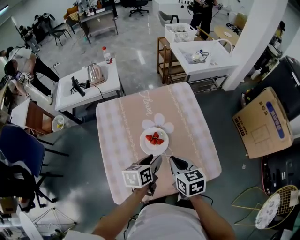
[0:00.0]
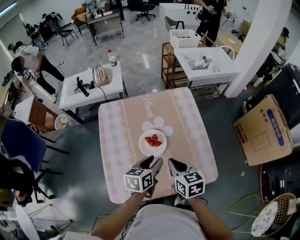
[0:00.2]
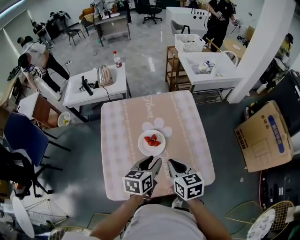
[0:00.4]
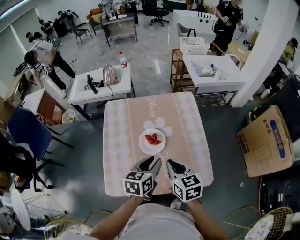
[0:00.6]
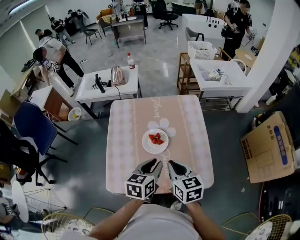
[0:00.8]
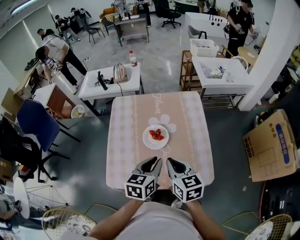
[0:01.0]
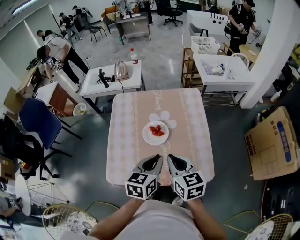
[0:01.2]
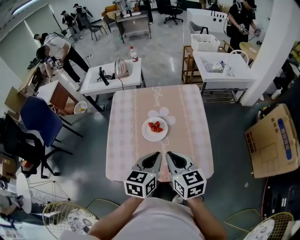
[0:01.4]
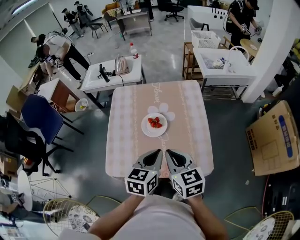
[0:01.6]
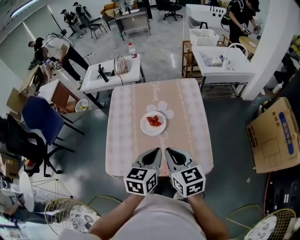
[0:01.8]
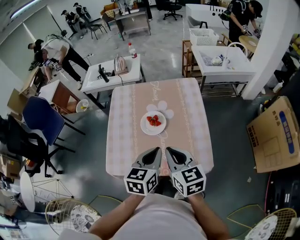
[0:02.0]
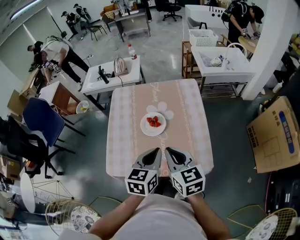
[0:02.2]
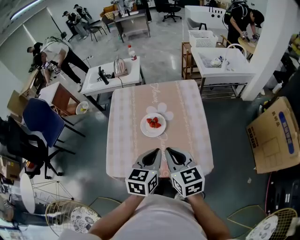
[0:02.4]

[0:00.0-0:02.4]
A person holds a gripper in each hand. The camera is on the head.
0:00.0 to 0:01.2: The right gripper goes about 10 cm upward.

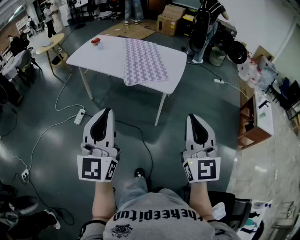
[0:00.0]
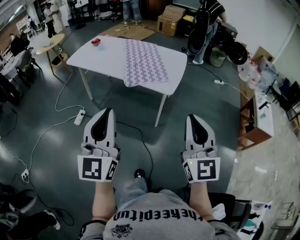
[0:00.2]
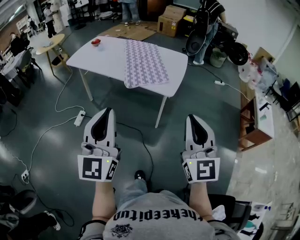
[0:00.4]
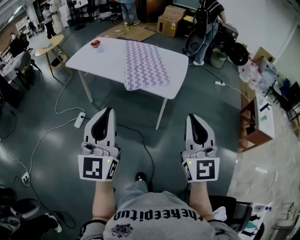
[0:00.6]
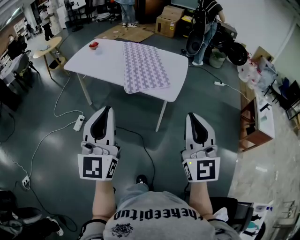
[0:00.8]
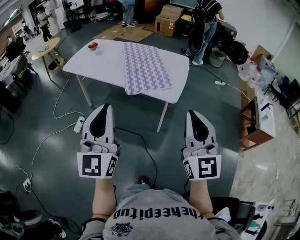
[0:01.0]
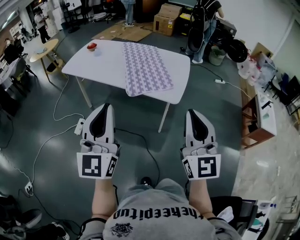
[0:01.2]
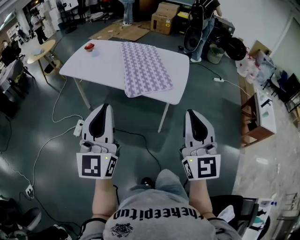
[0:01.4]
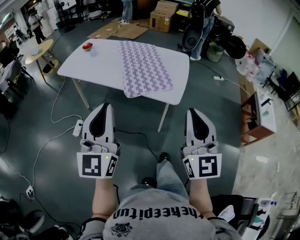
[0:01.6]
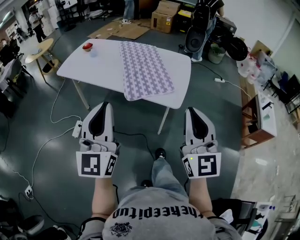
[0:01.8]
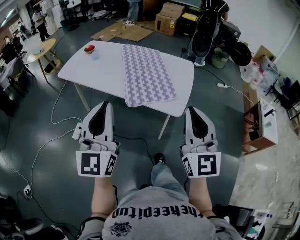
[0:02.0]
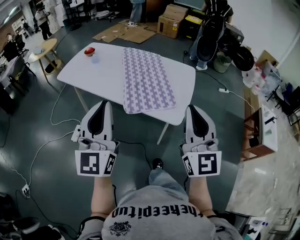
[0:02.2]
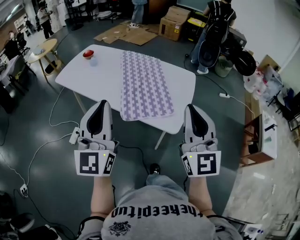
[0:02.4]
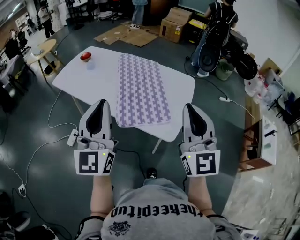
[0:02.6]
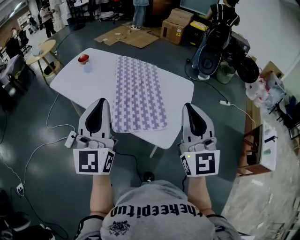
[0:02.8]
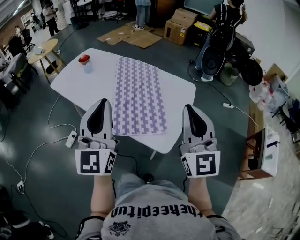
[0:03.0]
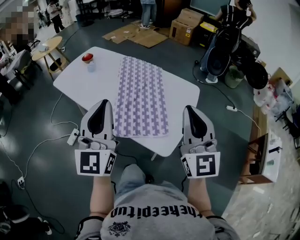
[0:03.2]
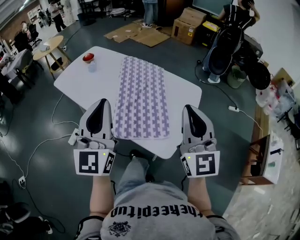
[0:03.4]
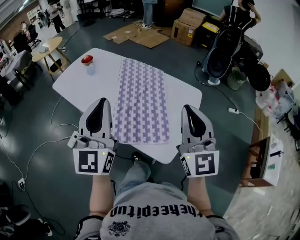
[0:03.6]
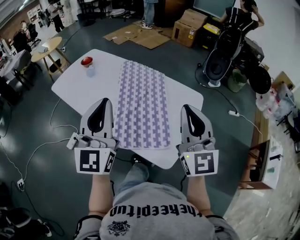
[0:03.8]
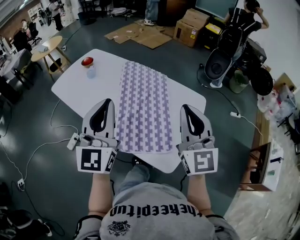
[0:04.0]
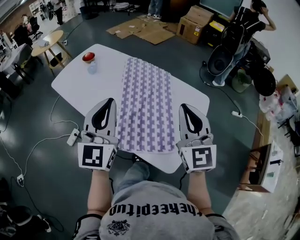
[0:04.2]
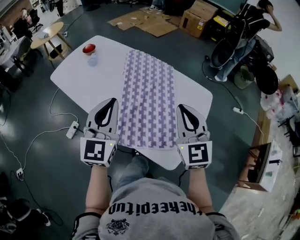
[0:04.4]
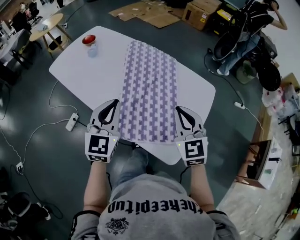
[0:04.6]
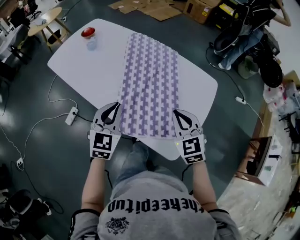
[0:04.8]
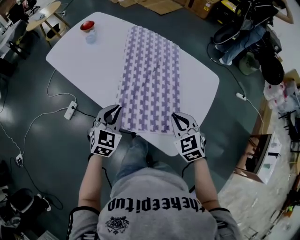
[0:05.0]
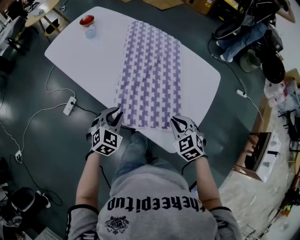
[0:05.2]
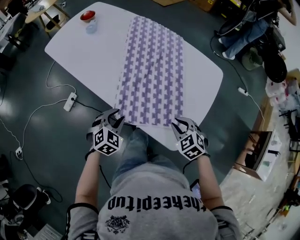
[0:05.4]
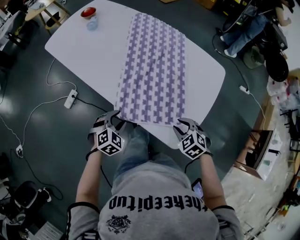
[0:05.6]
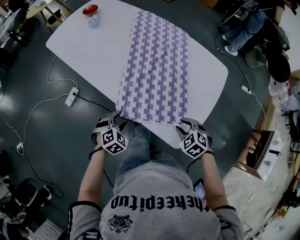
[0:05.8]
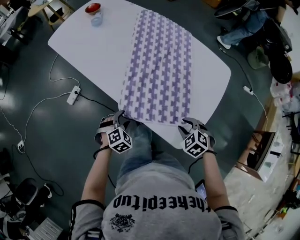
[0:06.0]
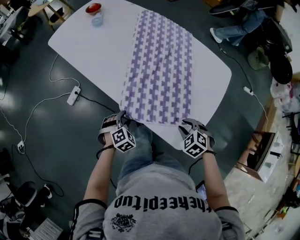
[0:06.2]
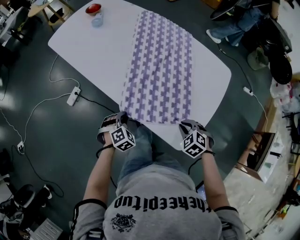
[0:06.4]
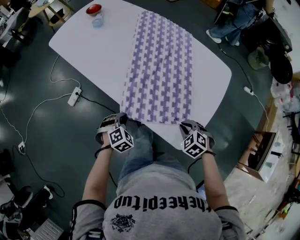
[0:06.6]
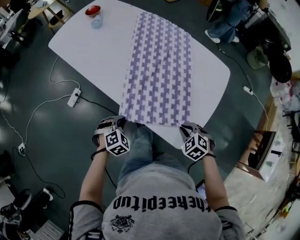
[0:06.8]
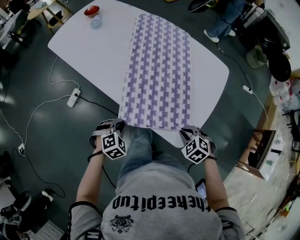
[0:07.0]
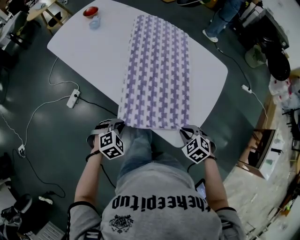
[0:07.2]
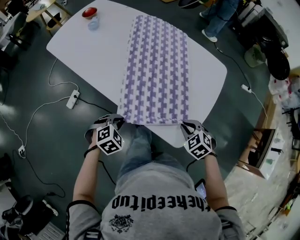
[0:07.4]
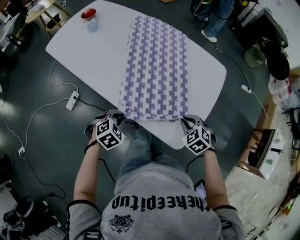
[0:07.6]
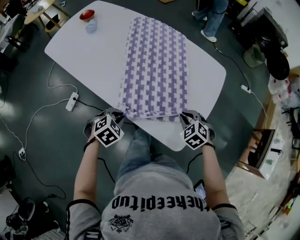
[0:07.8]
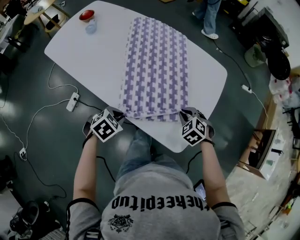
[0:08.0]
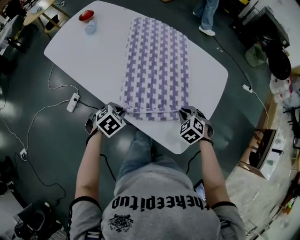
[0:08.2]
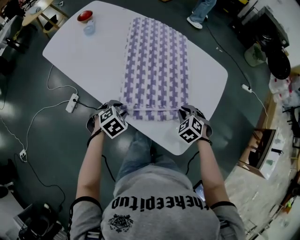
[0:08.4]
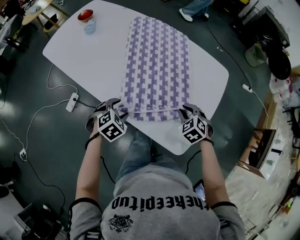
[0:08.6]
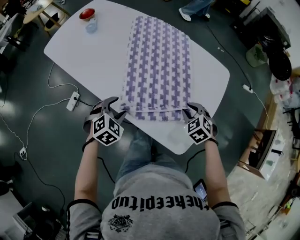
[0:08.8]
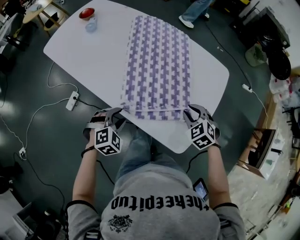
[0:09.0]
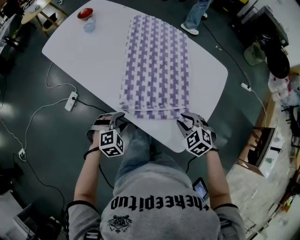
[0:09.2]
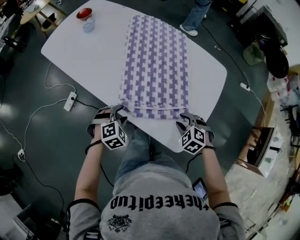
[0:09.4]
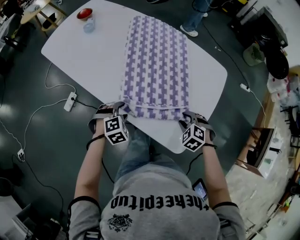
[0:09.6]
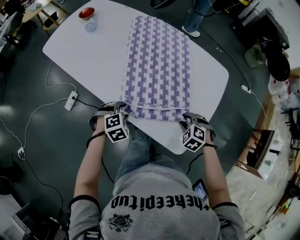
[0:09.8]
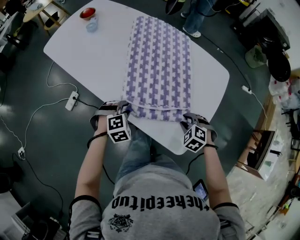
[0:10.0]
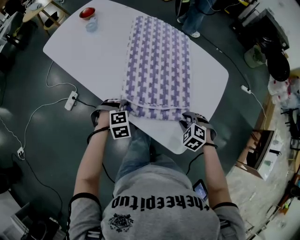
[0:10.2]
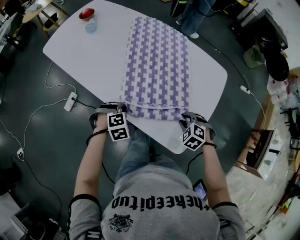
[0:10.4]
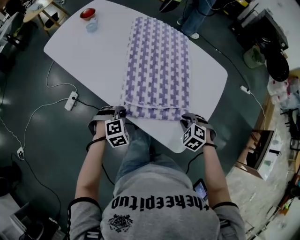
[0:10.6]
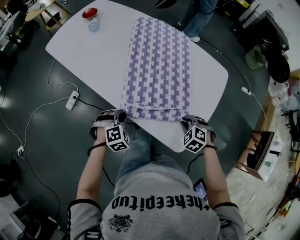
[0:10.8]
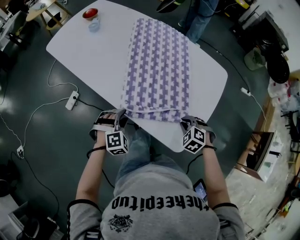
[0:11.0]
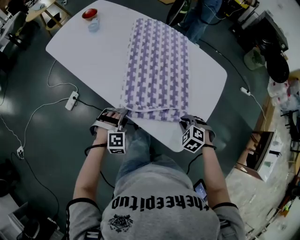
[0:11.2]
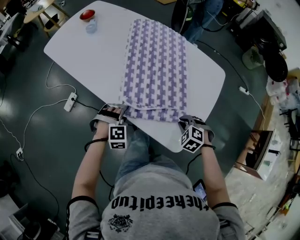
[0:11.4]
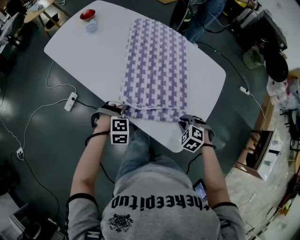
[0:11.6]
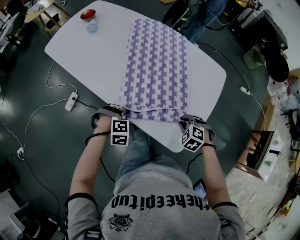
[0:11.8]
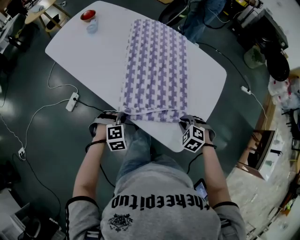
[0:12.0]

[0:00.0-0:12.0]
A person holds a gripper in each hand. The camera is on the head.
0:00.0 to 0:01.6: The two grippers go approximately 20 cm forward and to the left.
0:01.6 to 0:03.0: Both grippers are carried forward, approximately 40 cm.
0:03.0 to 0:04.4: Both grippers move forward and downward, some 25 cm.
0:04.4 to 0:06.0: Both grippers move downward, about 35 cm. The right gripper tilts its fingers some 60 degrees downward, and opens up. The left gripper tilts its fingers some 60 degrees downward, and opens.
0:06.0 to 0:07.6: The right gripper shifts roughly 5 cm forward. Meanwhile the left gripper goes approximately 10 cm upward, and closes up.
0:07.6 to 0:09.0: The right gripper is displaced forward by roughly 5 cm, while the left gripper opens.
0:09.0 to 0:10.4: The right gripper moves downward, about 5 cm, while the left gripper closes its fingers.
0:10.4 to 0:12.0: The left gripper opens and closes again.

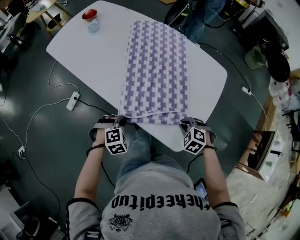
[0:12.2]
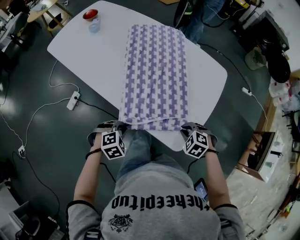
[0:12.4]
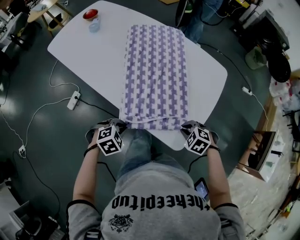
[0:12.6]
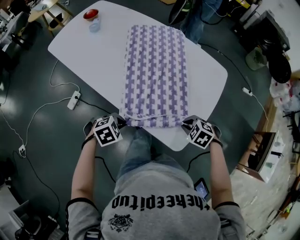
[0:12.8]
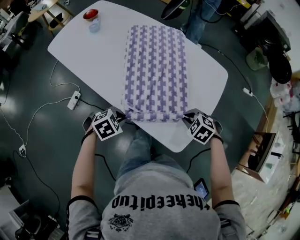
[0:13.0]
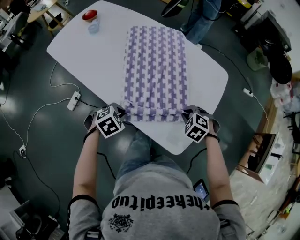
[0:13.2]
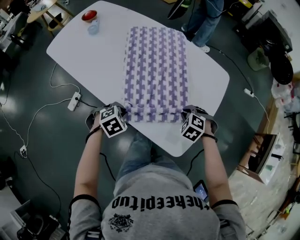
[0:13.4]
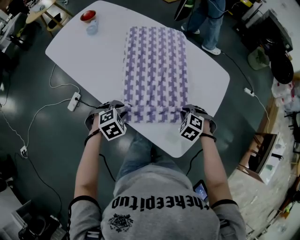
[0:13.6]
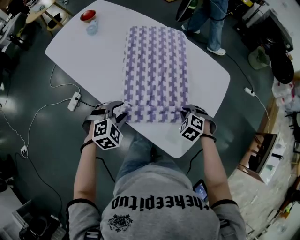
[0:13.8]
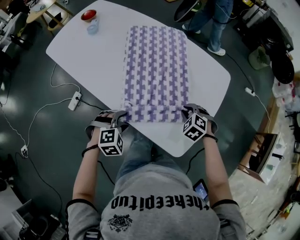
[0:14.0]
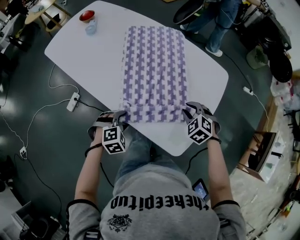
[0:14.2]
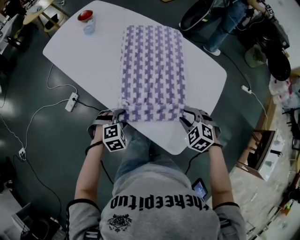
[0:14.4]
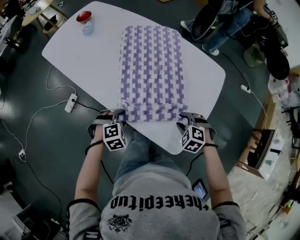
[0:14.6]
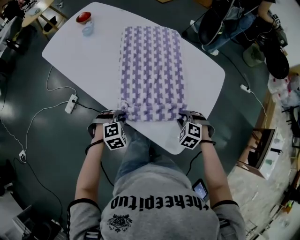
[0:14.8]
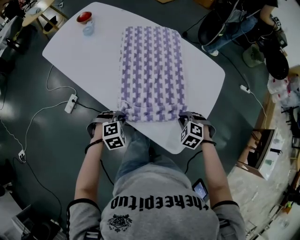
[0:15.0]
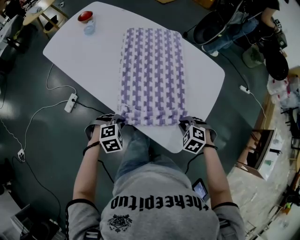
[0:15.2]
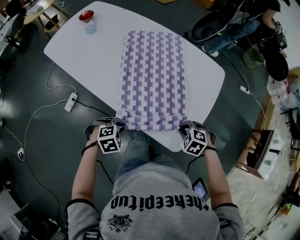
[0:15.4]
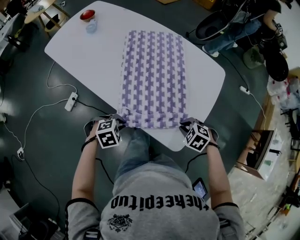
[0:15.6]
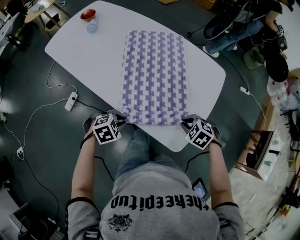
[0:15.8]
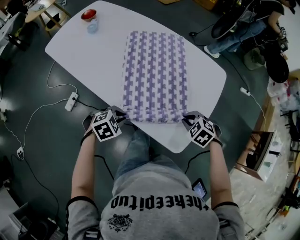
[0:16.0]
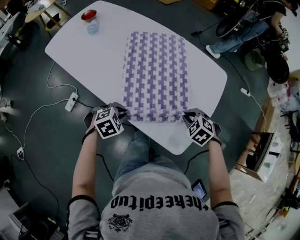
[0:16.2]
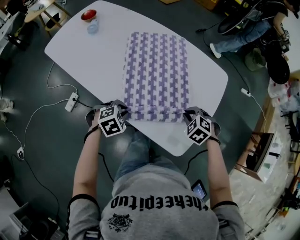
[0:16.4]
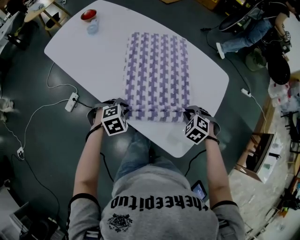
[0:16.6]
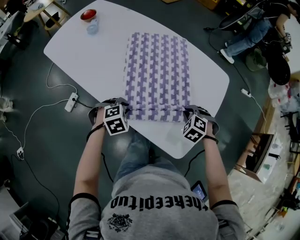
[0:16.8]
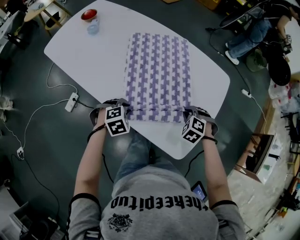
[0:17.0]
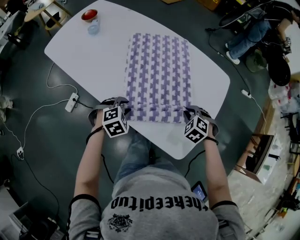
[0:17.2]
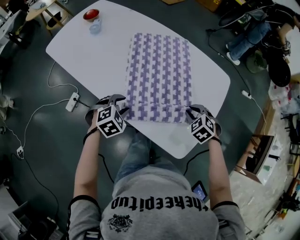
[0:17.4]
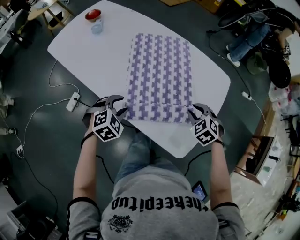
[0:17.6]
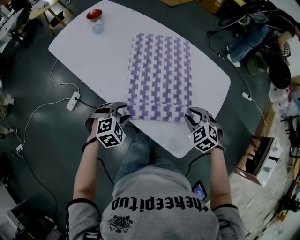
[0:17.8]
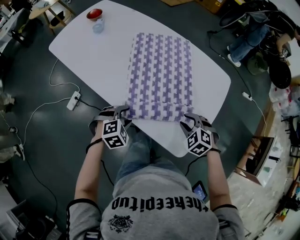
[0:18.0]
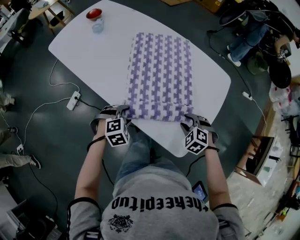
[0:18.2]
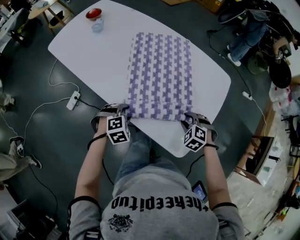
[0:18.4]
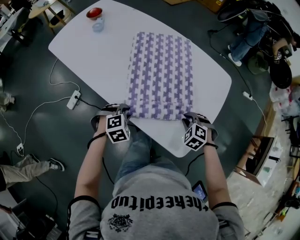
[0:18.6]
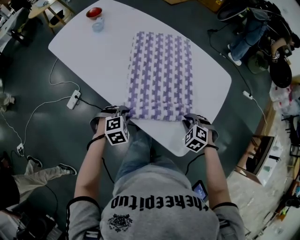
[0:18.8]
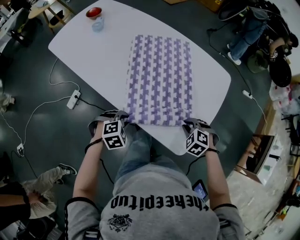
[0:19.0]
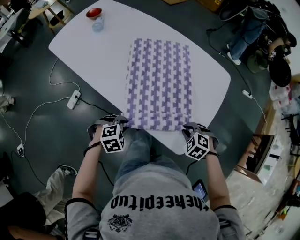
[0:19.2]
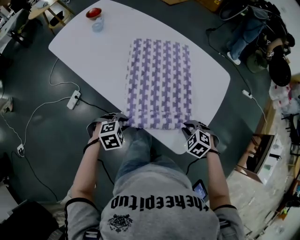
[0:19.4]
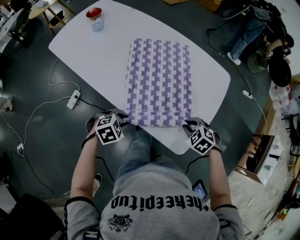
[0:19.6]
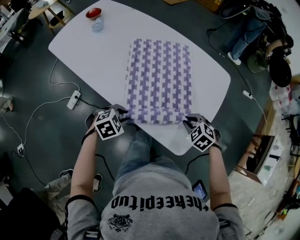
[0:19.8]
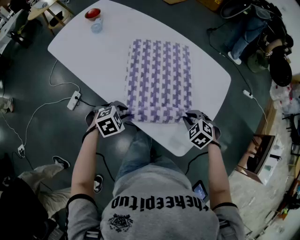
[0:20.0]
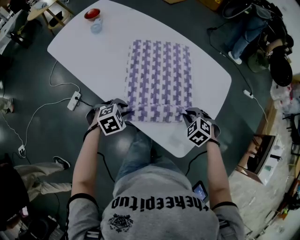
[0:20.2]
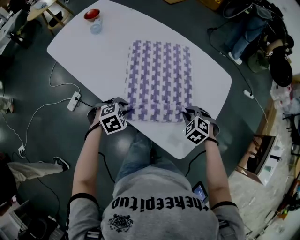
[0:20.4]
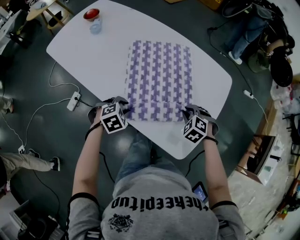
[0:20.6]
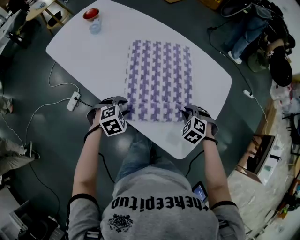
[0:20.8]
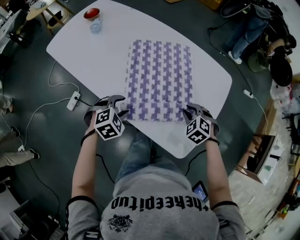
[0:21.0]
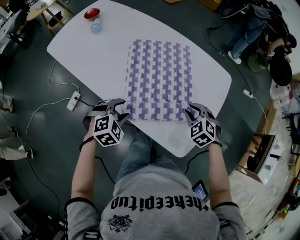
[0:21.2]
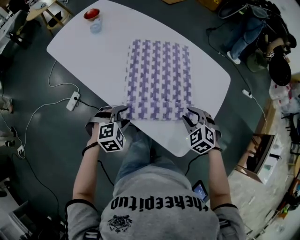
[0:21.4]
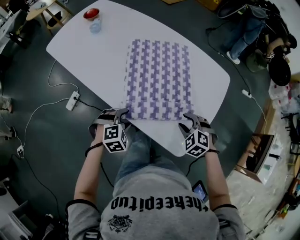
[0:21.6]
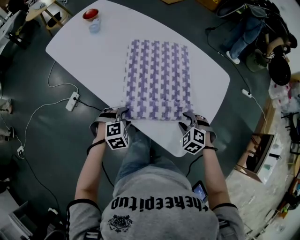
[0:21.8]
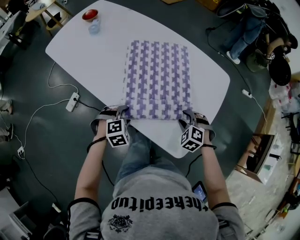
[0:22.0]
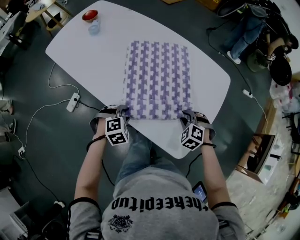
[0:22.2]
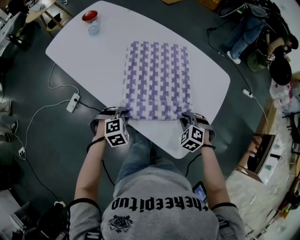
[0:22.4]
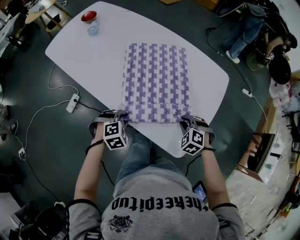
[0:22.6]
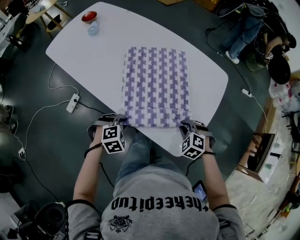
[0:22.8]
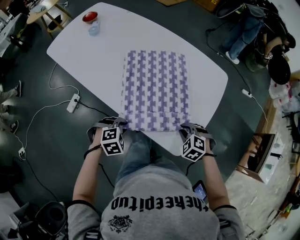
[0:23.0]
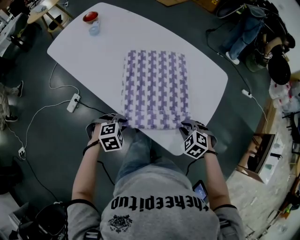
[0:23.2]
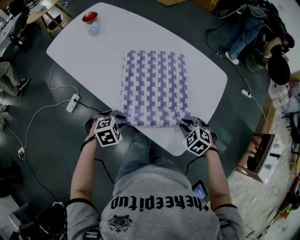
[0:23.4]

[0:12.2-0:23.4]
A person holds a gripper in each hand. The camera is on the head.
0:12.2 to 0:13.8: The left gripper shifts by some 10 cm, and opens its fingers. Meanwhile the right gripper changes place by some 15 cm.
0:13.8 to 0:15.4: The left gripper goes about 5 cm downward, changes its angle by some 20 degrees, and closes up. The right gripper changes place by approximately 5 cm, and opens, then closes again.
0:15.4 to 0:17.0: The left gripper shifts by some 10 cm, while the right gripper moves some 10 cm.
0:17.0 to 0:18.6: The left gripper opens and closes again. The right gripper travels upward and back again, some 5 cm each way, and opens, then closes again.
0:18.6 to 0:20.2: The right gripper travels backward and back again, approximately 5 cm each way. The left gripper moves about 5 cm backward and comes back.
0:20.2 to 0:21.8: The left gripper opens its fingers; the right gripper opens up.
0:21.8 to 0:23.4: Both grippers move upward, approximately 5 cm. The left gripper closes. The right gripper closes.
